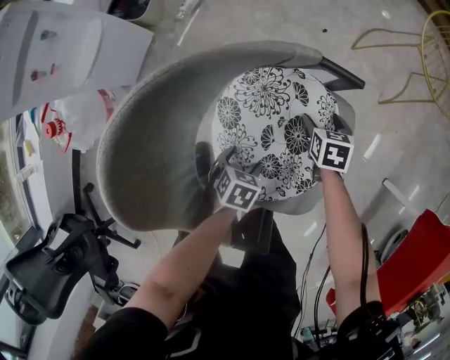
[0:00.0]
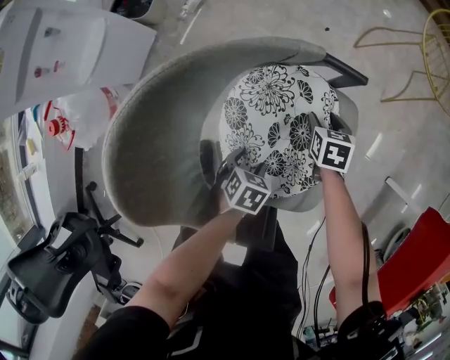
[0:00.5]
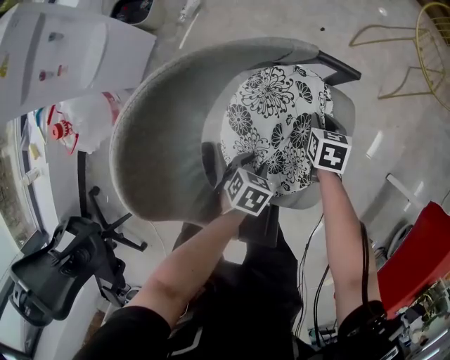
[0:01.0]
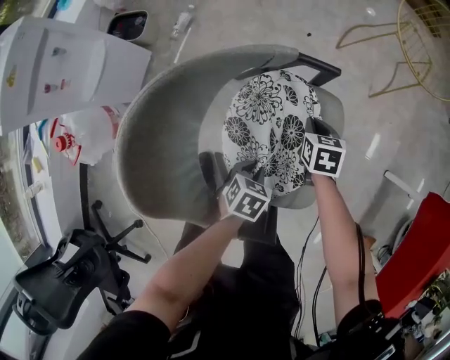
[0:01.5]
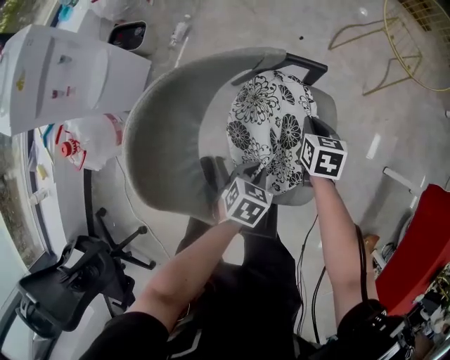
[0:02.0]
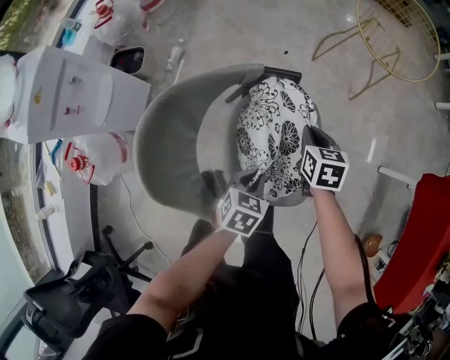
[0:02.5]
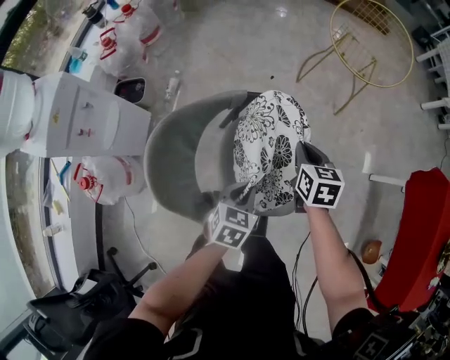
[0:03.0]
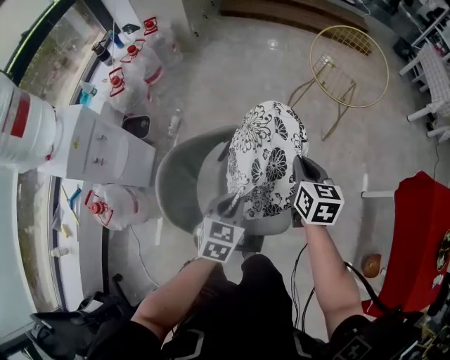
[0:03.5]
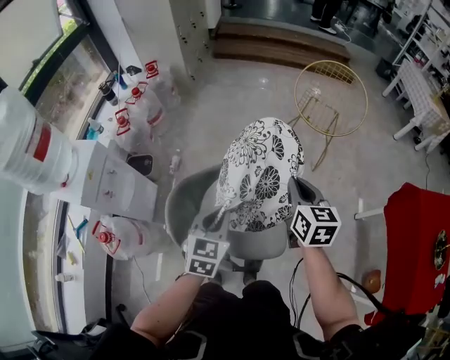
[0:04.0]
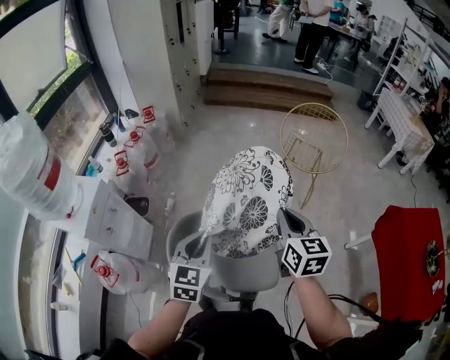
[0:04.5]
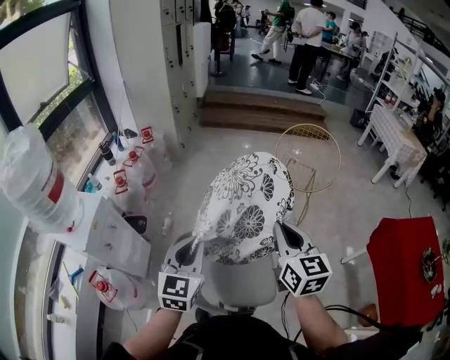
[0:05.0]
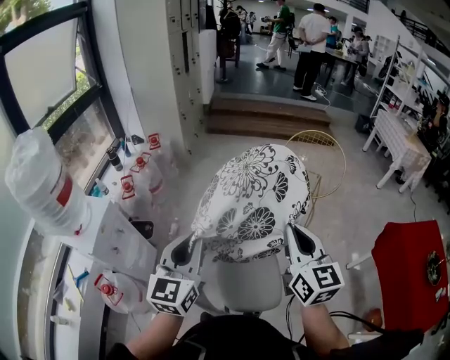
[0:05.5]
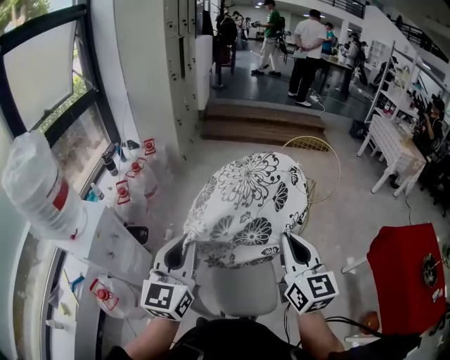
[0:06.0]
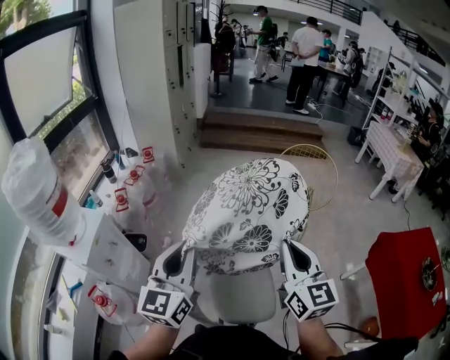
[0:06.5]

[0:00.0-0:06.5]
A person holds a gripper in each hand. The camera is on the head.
0.0 to 2.0 s: The two grippers go approximately 10 cm upward. The right gripper closes its fingers. Meanwhile the left gripper closes.
2.0 to 4.5 s: The two grippers go some 50 cm upward. The left gripper points its fingers roughly 40 degrees further upward. The right gripper points its fingers approximately 40 degrees further upward.
4.5 to 6.5 s: The right gripper shifts roughly 15 cm upward and backward. The left gripper goes about 15 cm upward, and turns by roughly 30 degrees.

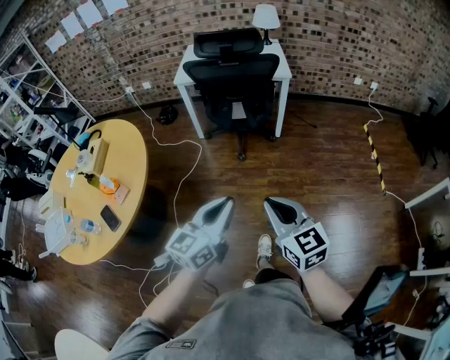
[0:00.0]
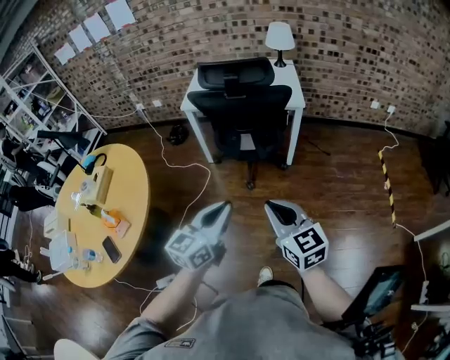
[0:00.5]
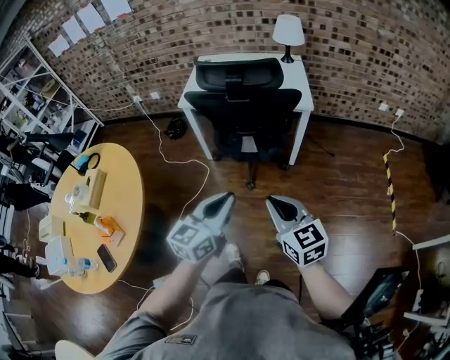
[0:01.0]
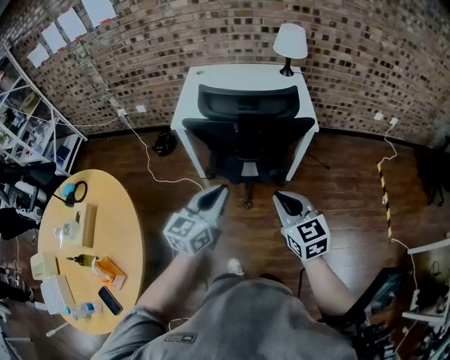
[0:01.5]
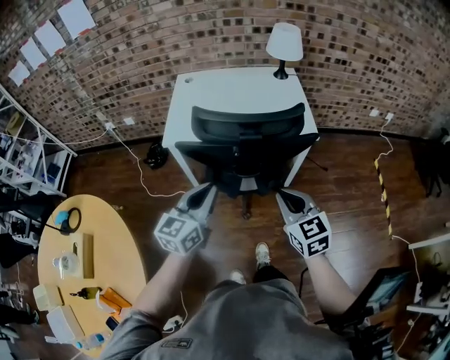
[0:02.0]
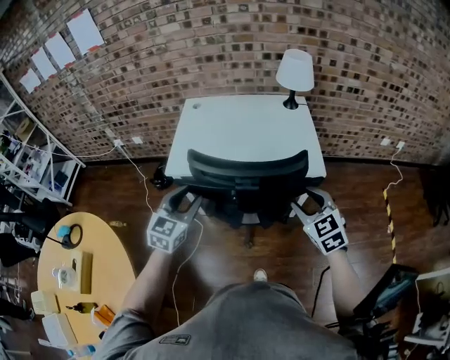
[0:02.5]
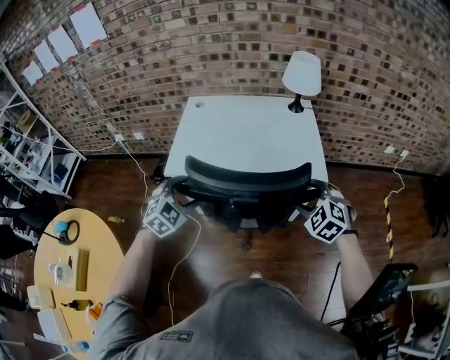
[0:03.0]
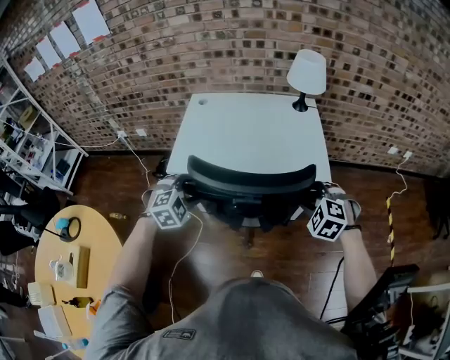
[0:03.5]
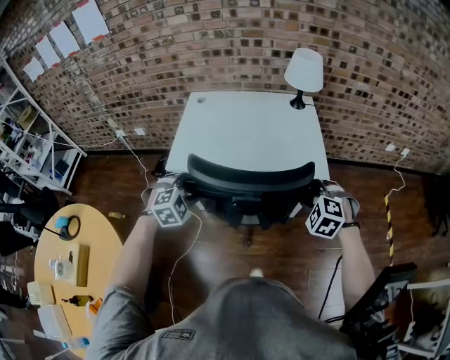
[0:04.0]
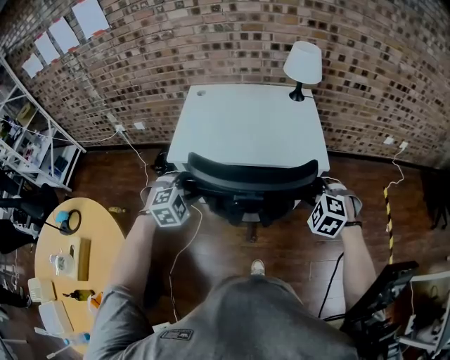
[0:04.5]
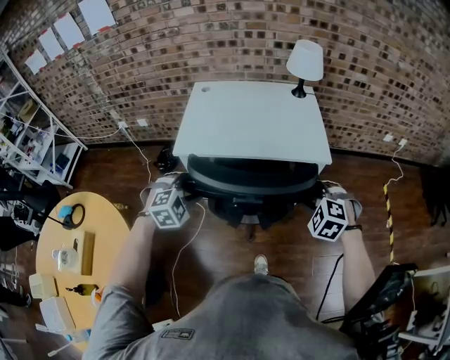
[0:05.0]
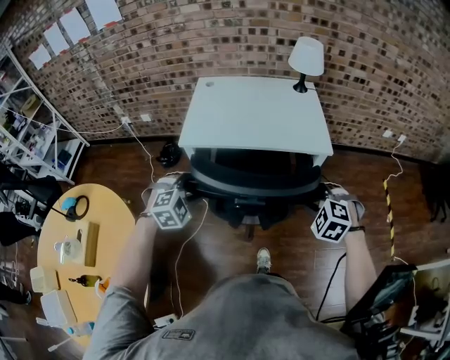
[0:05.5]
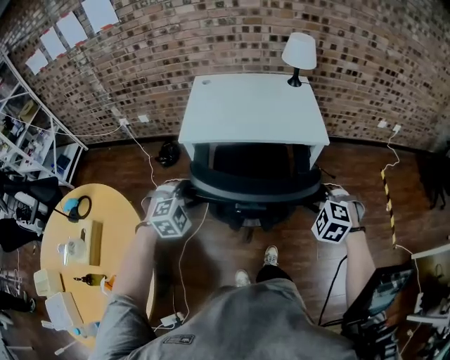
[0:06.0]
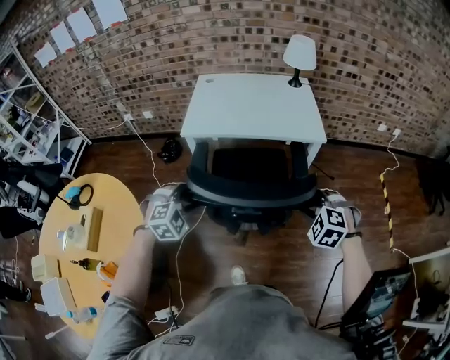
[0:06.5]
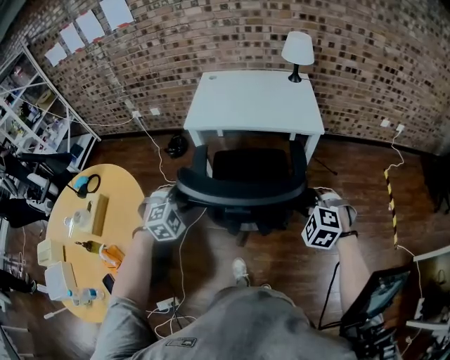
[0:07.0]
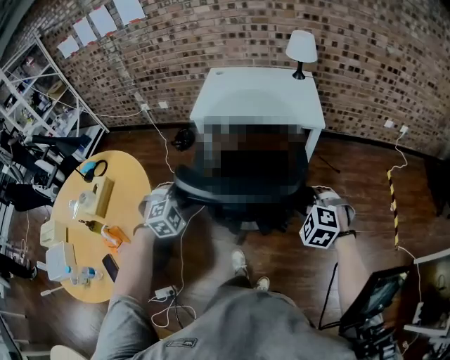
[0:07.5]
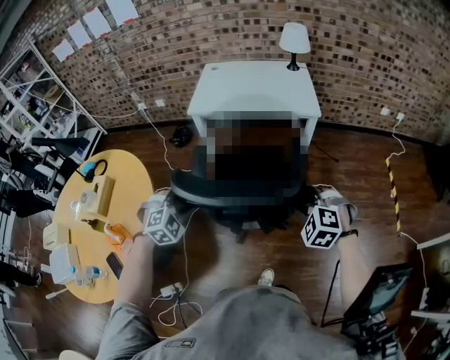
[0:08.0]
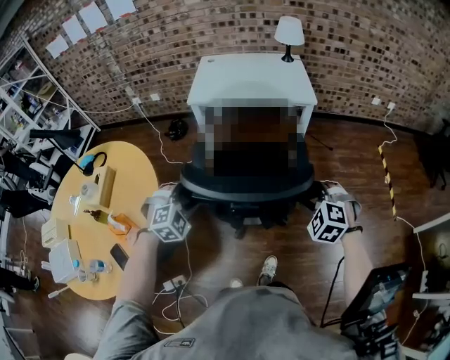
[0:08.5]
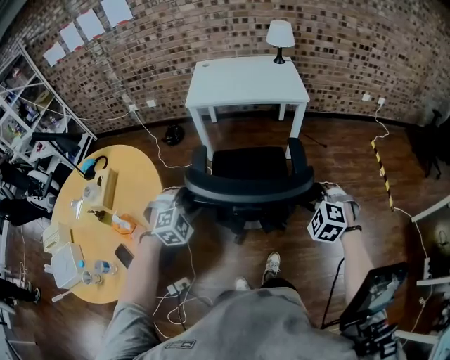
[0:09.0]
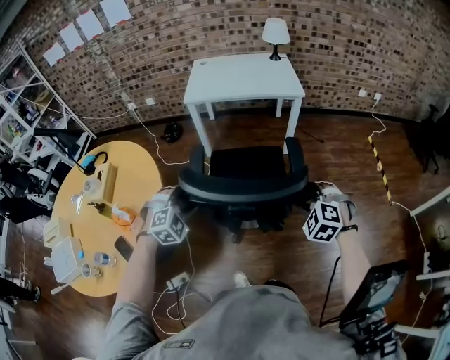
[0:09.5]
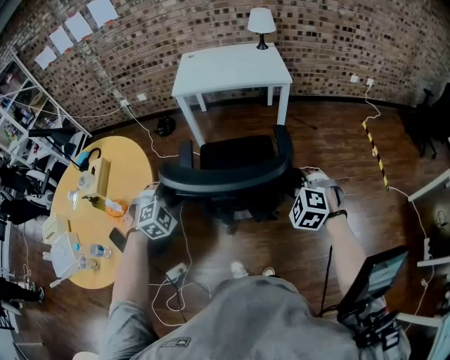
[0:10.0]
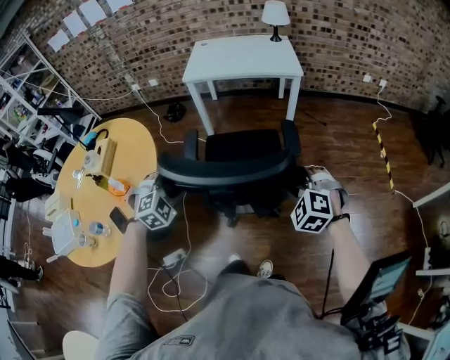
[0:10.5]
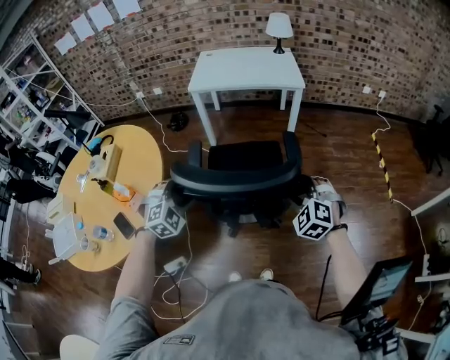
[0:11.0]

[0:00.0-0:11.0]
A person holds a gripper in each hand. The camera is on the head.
0.0 to 2.0 s: The pair of grippers is taken forward, some 50 cm.
2.0 to 3.5 s: The left gripper moves forward and downward, approximately 20 cm, rotates around the line of its fingers by about 60 degrees, clockwise from behind, and opens its fingers, while the right gripper travels forward and to the right by about 20 cm, rolls counterclockwise, seen from behind, by about 50 degrees, and opens up.
3.5 to 5.5 s: The two grippers go roughly 15 cm backward.
5.5 to 7.5 s: The two grippers go approximately 25 cm backward.
7.5 to 9.0 s: The grippers both shift backward by about 15 cm.
9.0 to 11.0 s: The grippers both shift backward by some 10 cm.

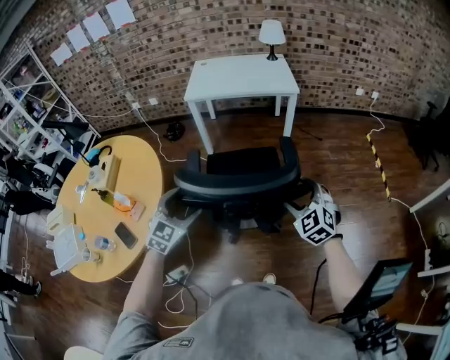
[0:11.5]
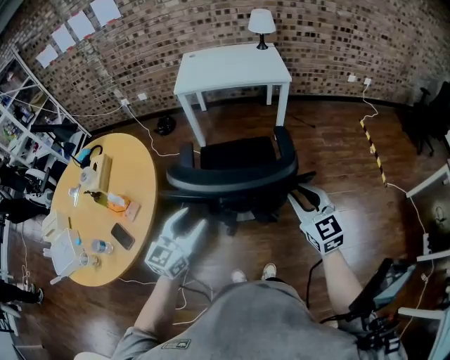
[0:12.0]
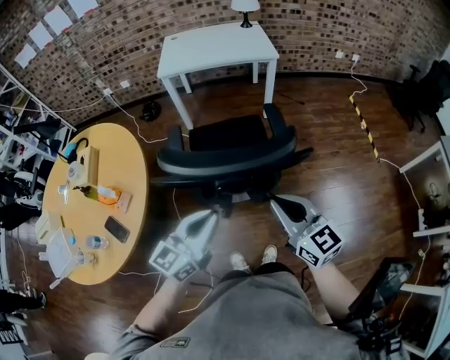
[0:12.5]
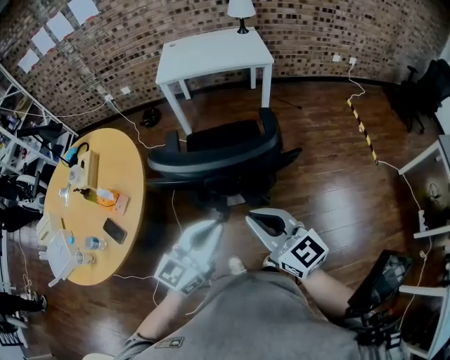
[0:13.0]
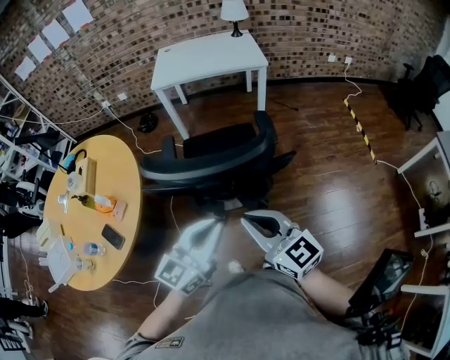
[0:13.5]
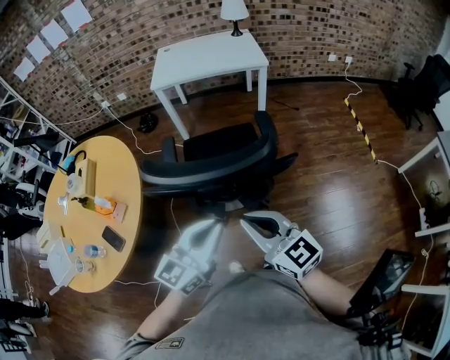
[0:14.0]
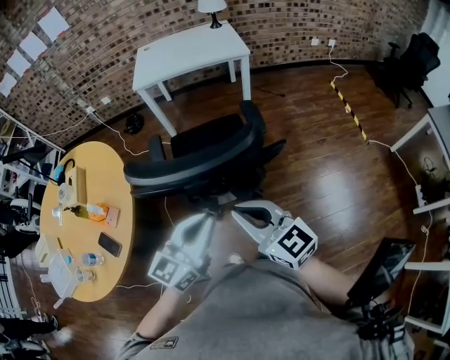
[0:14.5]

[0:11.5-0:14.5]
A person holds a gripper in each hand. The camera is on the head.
11.5 to 13.0 s: The left gripper shifts about 20 cm backward, to the right and upward, changes its angle by roughly 40 degrees, and closes up; the right gripper shifts about 20 cm backward, to the left and upward, changes its angle by approximately 50 degrees, and closes up.
13.0 to 14.5 s: The grippers stay close to where they were, moving slightly.

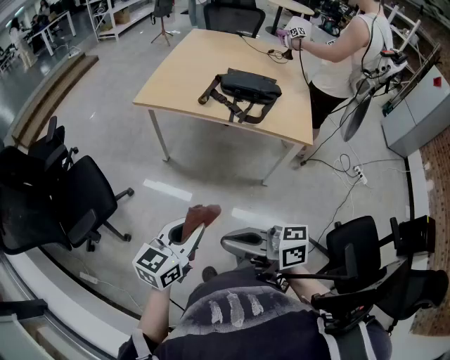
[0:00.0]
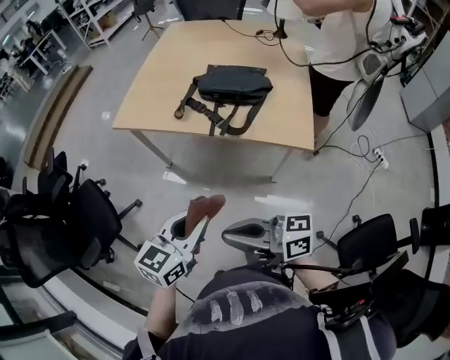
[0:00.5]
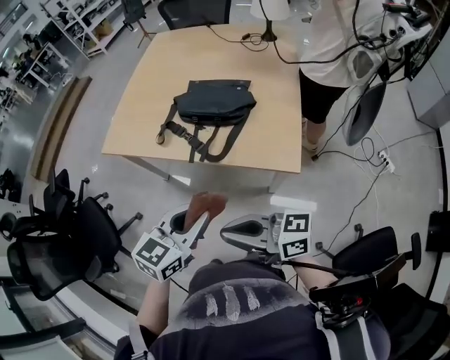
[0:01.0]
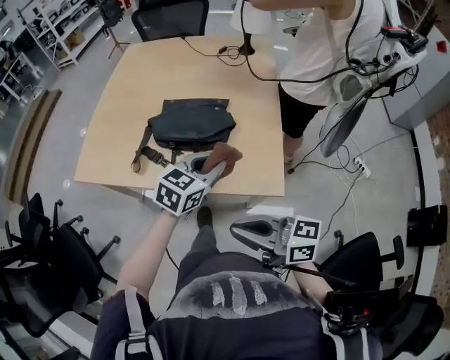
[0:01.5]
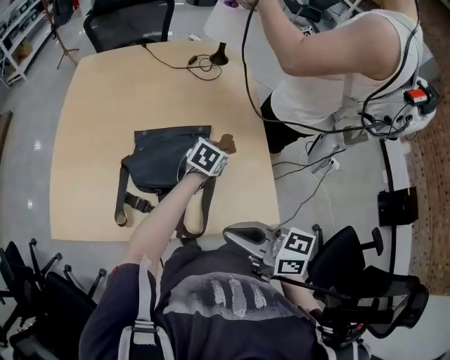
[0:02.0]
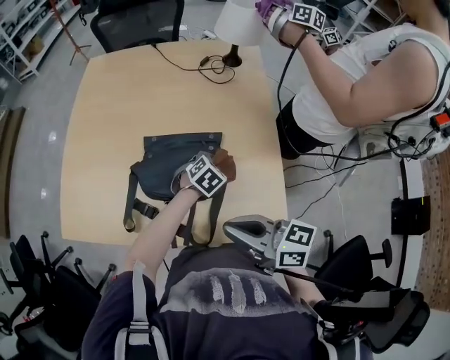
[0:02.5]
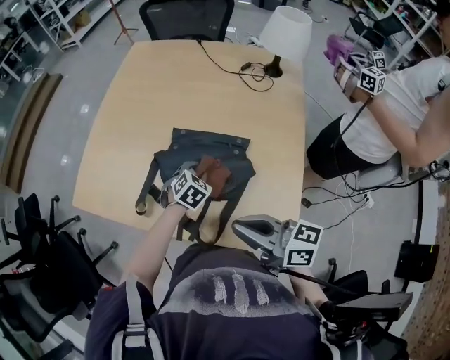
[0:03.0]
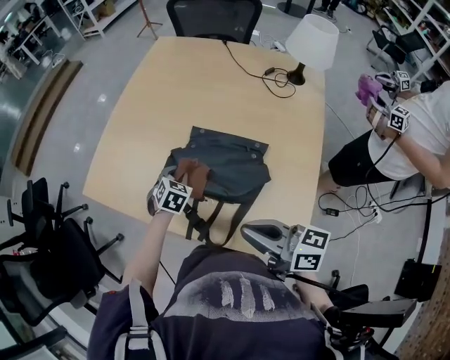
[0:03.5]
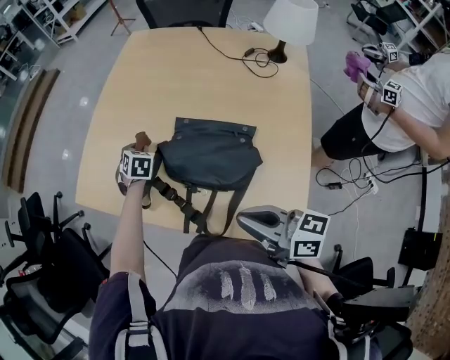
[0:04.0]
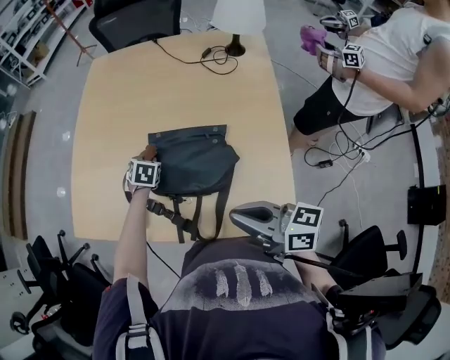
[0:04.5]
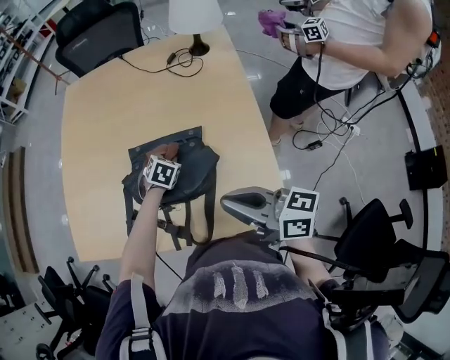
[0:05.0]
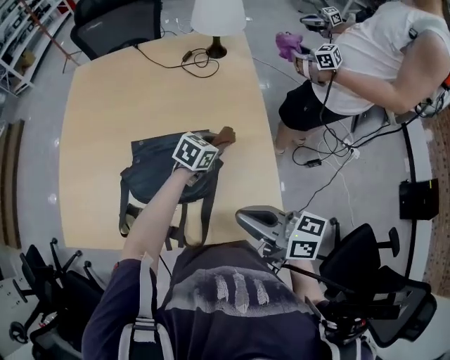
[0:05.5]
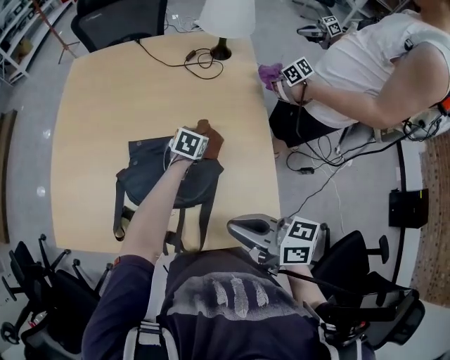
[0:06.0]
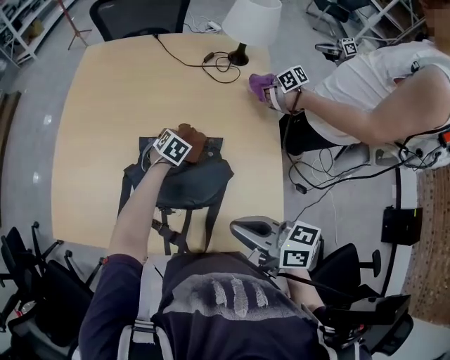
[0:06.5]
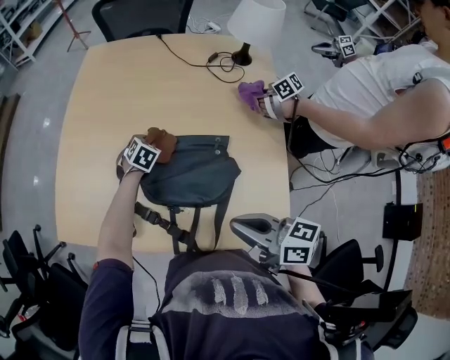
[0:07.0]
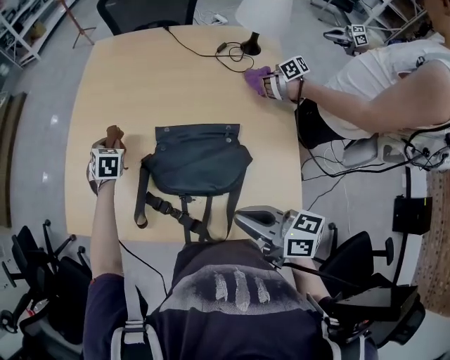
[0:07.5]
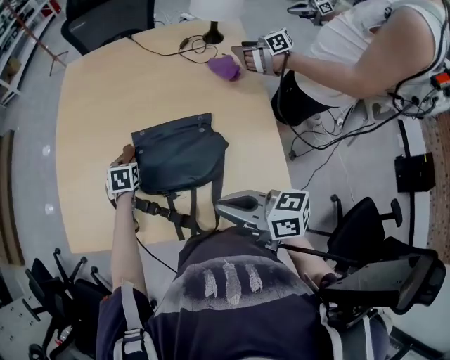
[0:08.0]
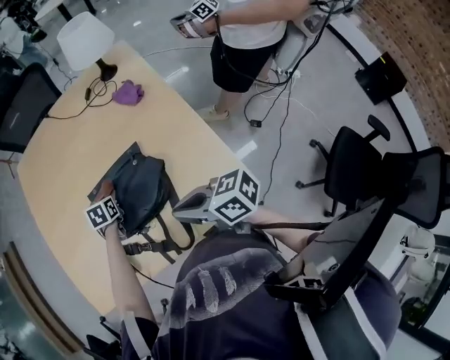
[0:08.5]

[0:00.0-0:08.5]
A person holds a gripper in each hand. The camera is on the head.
0.0 to 2.0 s: Both grippers are carried roughly 70 cm. The right gripper turns by approximately 30 degrees, while the left gripper tilts its fingers approximately 30 degrees downward.
2.0 to 4.0 s: The left gripper moves roughly 40 cm, and changes its angle by about 60 degrees; the right gripper changes place by some 5 cm.
4.0 to 6.5 s: The left gripper swings up and down, roughly 10 cm each way, with 2 reversals, and turns by some 40 degrees.
6.5 to 8.5 s: The left gripper goes to the left and returns, about 30 cm each way.
